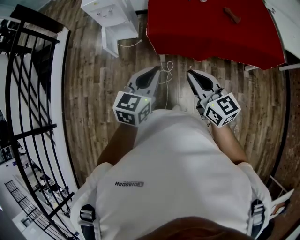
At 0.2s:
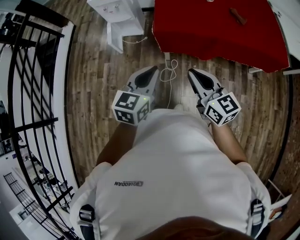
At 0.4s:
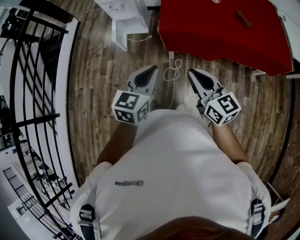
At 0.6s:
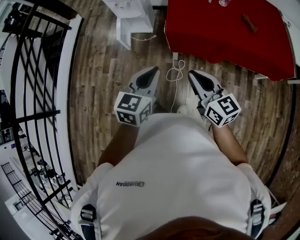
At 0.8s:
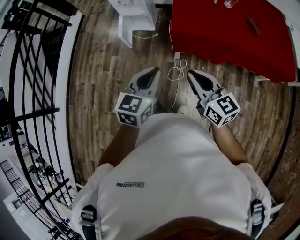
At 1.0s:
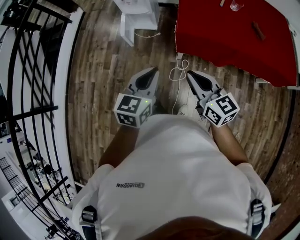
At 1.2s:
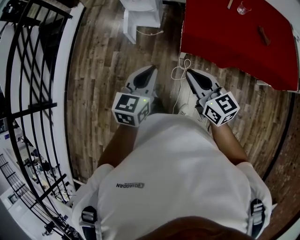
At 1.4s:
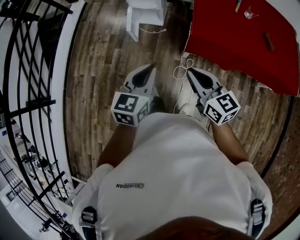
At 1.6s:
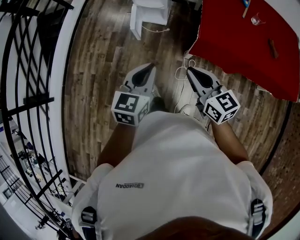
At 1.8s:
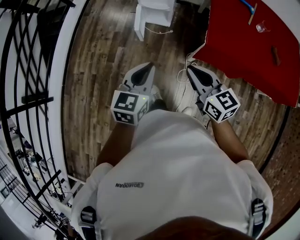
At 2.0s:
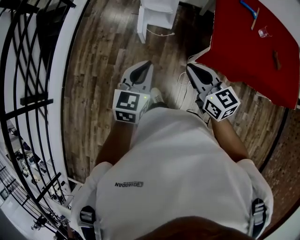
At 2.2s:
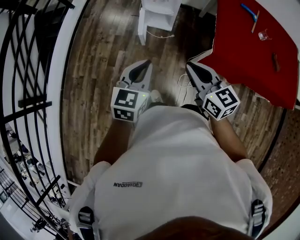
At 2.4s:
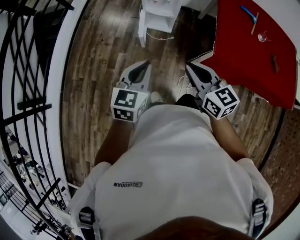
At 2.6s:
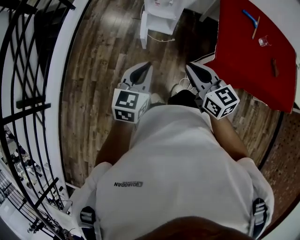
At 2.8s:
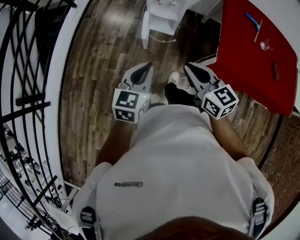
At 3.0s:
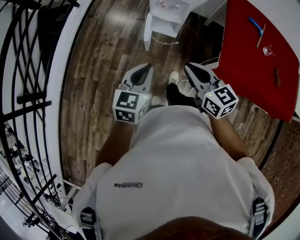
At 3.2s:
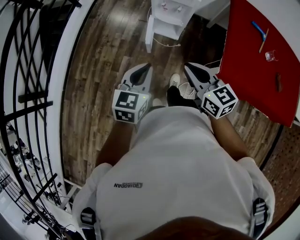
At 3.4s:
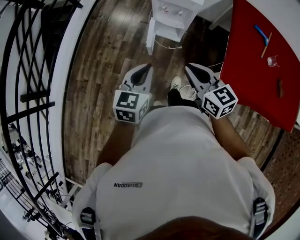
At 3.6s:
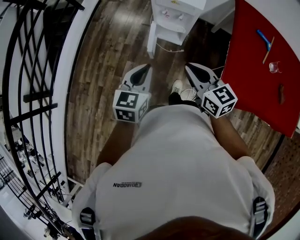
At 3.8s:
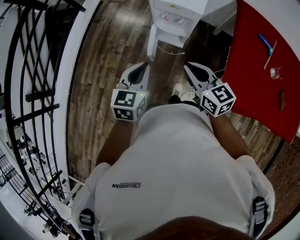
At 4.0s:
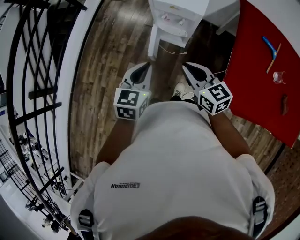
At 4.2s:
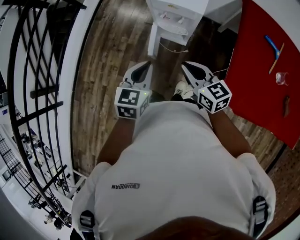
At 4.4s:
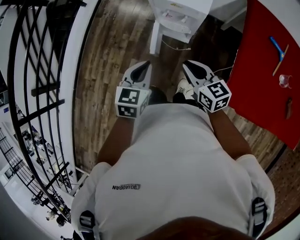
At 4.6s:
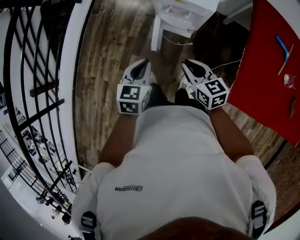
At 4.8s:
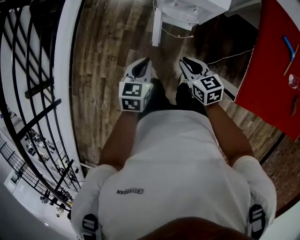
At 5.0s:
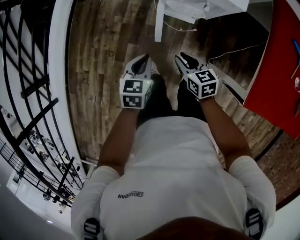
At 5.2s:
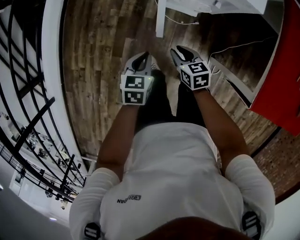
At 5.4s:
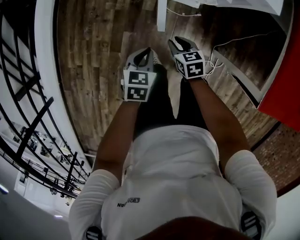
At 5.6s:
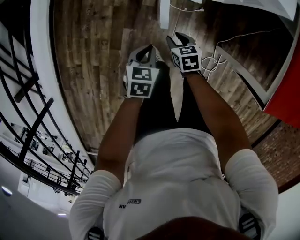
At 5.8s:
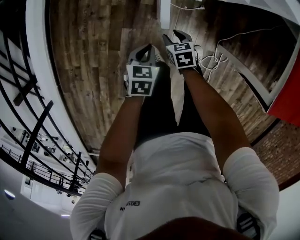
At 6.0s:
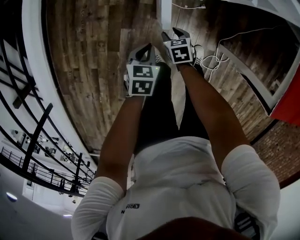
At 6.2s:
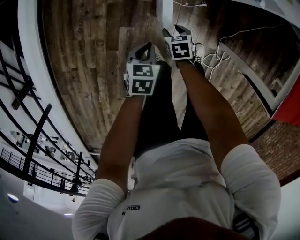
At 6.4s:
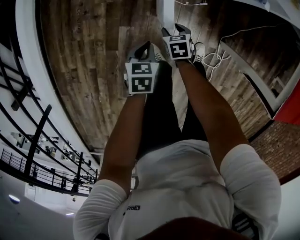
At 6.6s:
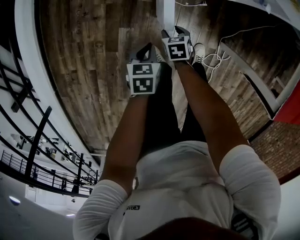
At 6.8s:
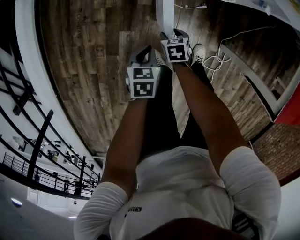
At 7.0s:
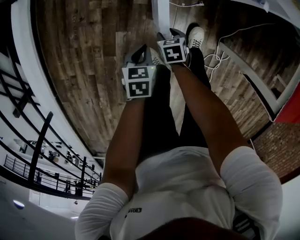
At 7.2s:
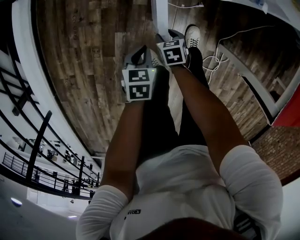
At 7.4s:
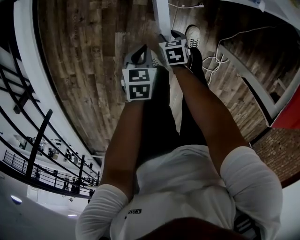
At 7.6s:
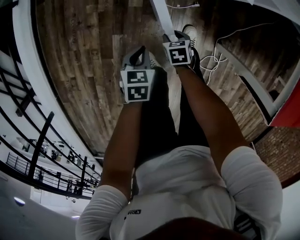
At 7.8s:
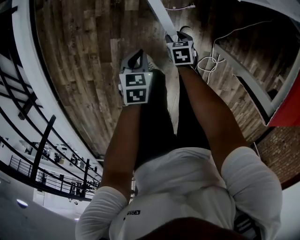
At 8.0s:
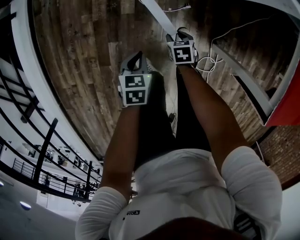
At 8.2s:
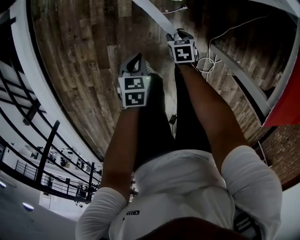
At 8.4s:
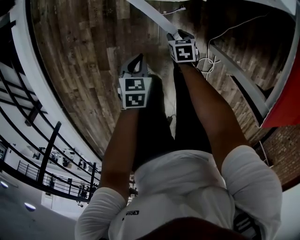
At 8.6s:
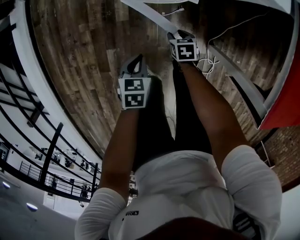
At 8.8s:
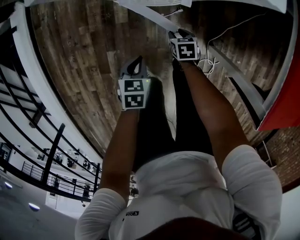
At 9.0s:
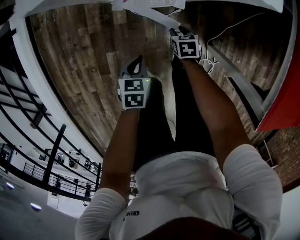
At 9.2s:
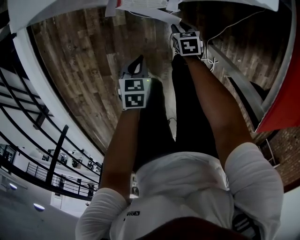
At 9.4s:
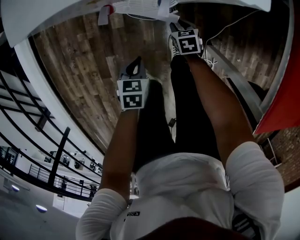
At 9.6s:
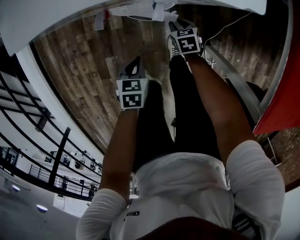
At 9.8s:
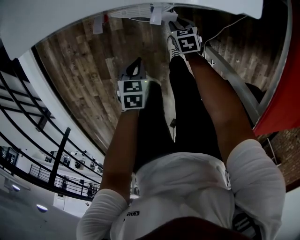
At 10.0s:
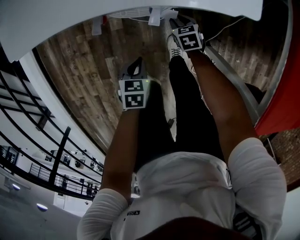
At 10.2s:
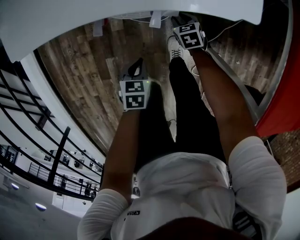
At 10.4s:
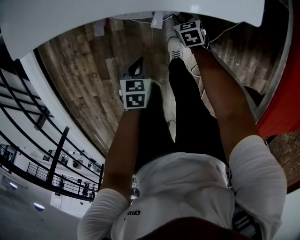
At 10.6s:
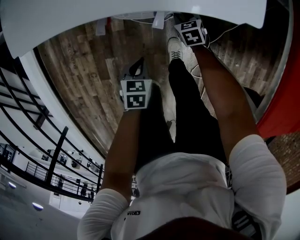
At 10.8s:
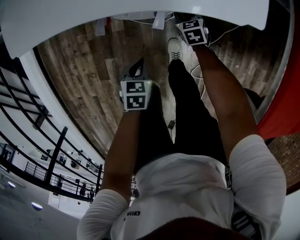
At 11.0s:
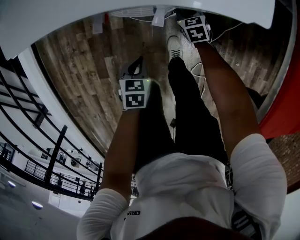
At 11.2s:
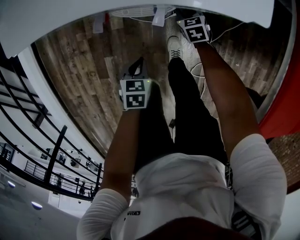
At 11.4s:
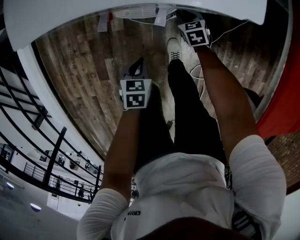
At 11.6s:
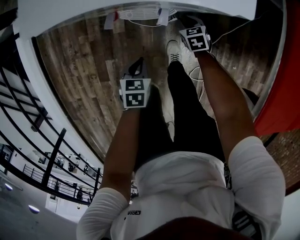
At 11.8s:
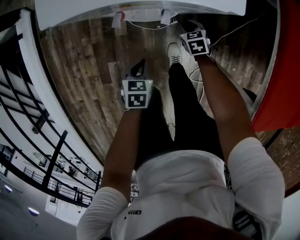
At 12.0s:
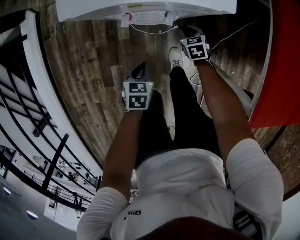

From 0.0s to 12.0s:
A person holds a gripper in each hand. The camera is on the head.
From 0.0s to 1.6s: The two grippers go some 25 cm to the left and forward.
From 1.6s to 3.0s: Both grippers move forward and to the left, about 20 cm.
From 3.0s to 4.4s: The left gripper goes approximately 20 cm forward; the right gripper is displaced forward and downward by about 20 cm.
From 4.4s to 6.0s: The two grippers go about 40 cm downward. The right gripper points its fingers some 40 degrees further downward, and opens its fingers, while the left gripper turns by approximately 30 degrees.
From 6.0s to 7.6s: The left gripper moves about 5 cm. Meanwhile the right gripper goes about 5 cm to the right.
From 7.6s to 9.0s: The right gripper is displaced to the right and forward by about 15 cm, while the left gripper travels to the right by about 10 cm.
From 9.0s to 10.4s: The right gripper shifts roughly 10 cm forward.
From 10.4s to 12.0s: Both grippers travel together upward, roughly 5 cm.

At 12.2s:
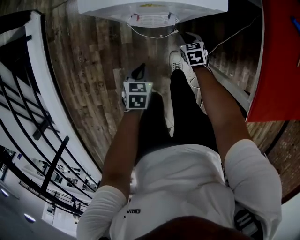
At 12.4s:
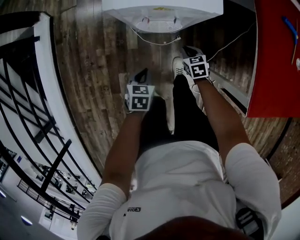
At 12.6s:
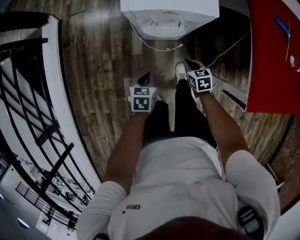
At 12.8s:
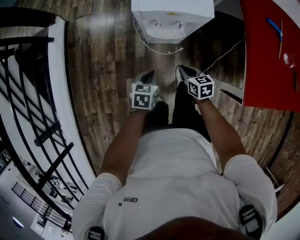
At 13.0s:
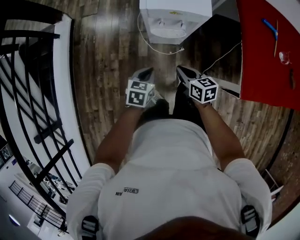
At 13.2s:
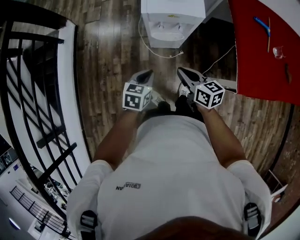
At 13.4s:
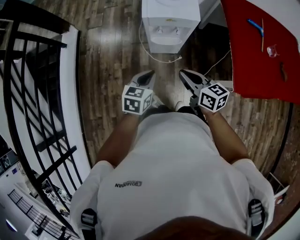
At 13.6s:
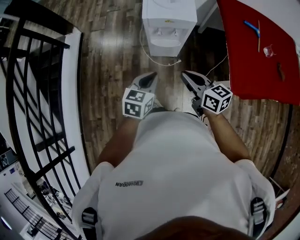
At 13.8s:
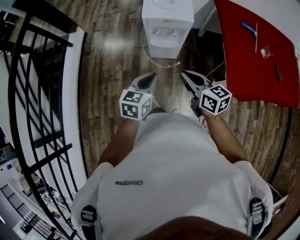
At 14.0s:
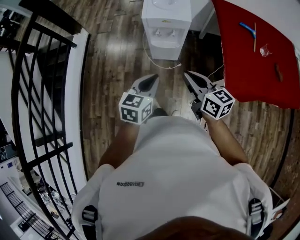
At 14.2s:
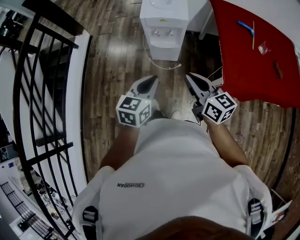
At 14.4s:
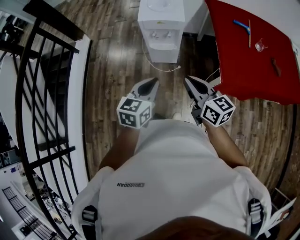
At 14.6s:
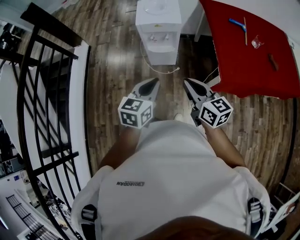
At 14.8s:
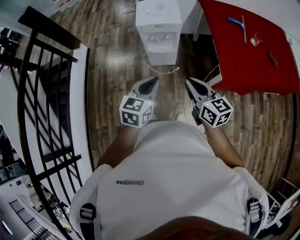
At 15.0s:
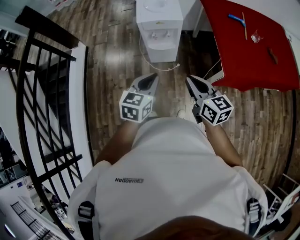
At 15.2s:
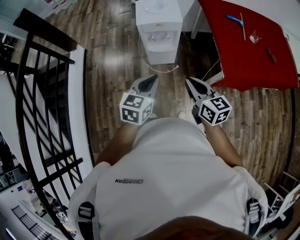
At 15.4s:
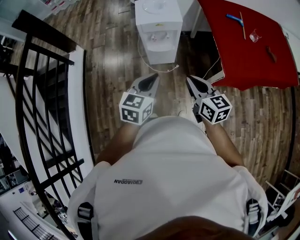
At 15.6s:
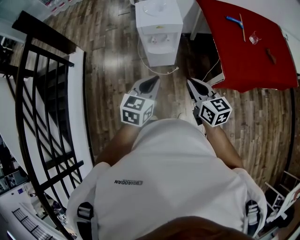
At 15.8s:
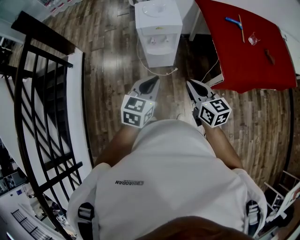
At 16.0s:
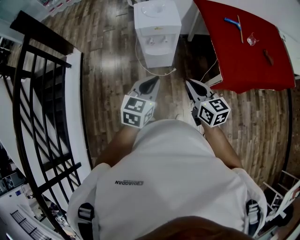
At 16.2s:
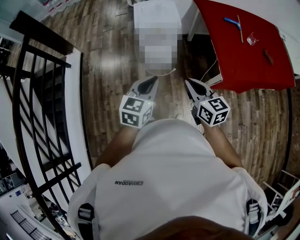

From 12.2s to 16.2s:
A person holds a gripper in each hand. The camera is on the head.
From 12.2s to 13.6s: The left gripper is displaced upward by roughly 35 cm, and changes its angle by about 30 degrees. The right gripper shifts approximately 50 cm upward and backward, and points its fingers about 40 degrees further upward.
From 13.6s to 14.8s: The two grippers go about 15 cm backward and upward.
From 14.8s to 16.2s: There are only small adjustments of the grippers.

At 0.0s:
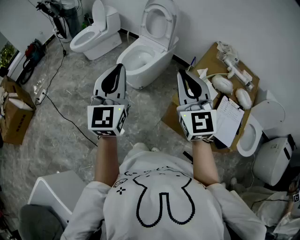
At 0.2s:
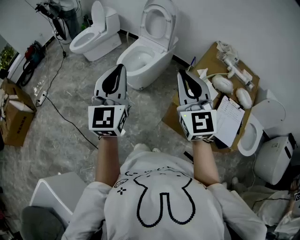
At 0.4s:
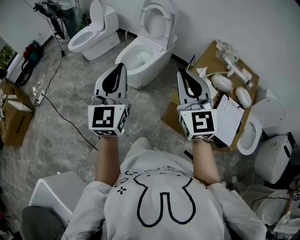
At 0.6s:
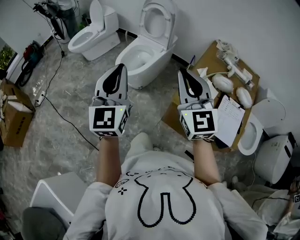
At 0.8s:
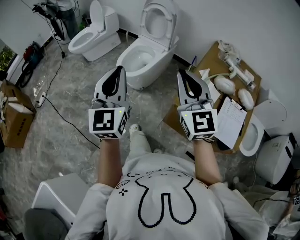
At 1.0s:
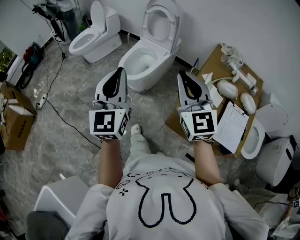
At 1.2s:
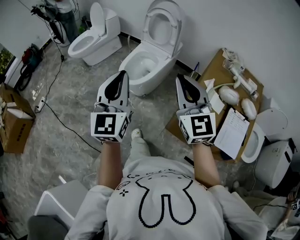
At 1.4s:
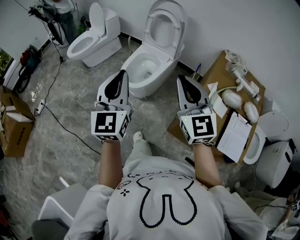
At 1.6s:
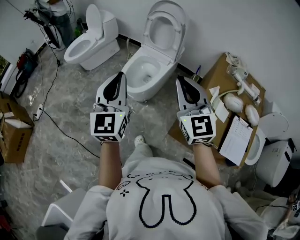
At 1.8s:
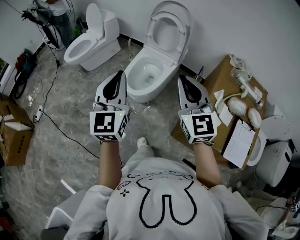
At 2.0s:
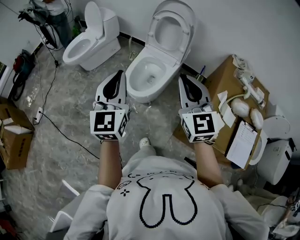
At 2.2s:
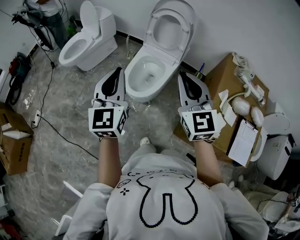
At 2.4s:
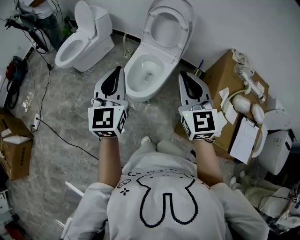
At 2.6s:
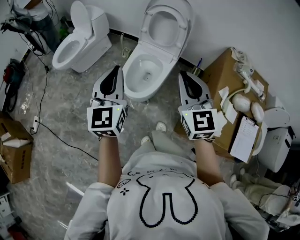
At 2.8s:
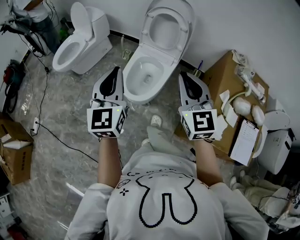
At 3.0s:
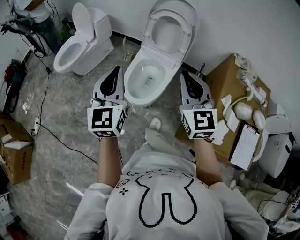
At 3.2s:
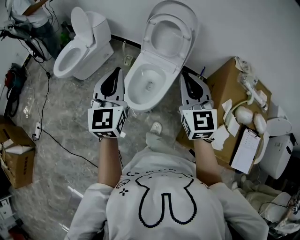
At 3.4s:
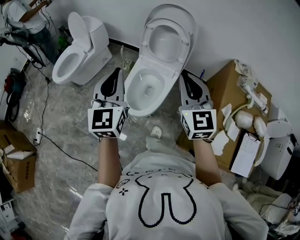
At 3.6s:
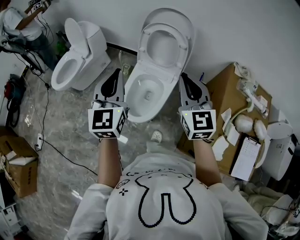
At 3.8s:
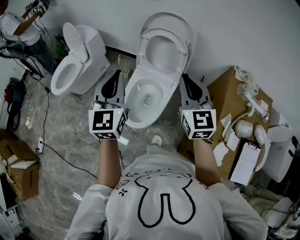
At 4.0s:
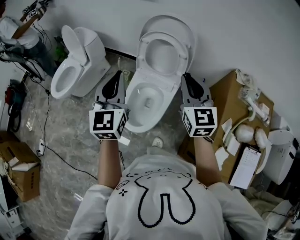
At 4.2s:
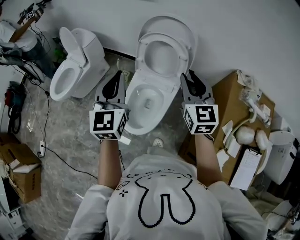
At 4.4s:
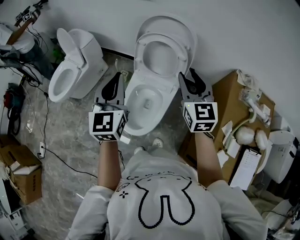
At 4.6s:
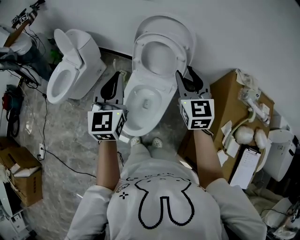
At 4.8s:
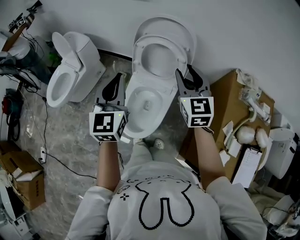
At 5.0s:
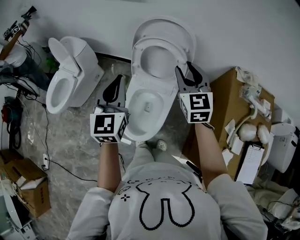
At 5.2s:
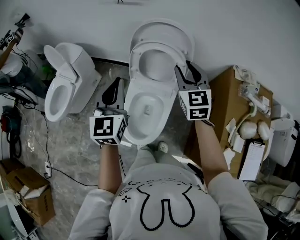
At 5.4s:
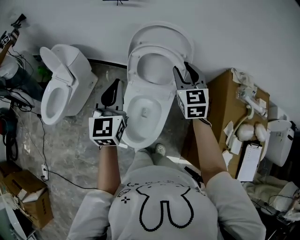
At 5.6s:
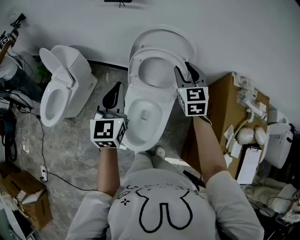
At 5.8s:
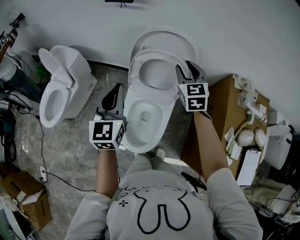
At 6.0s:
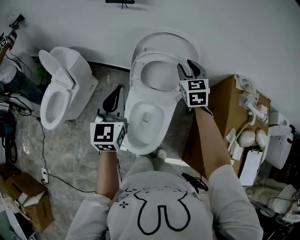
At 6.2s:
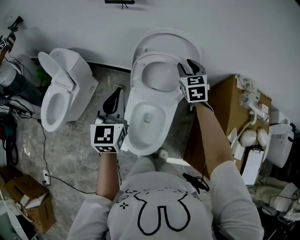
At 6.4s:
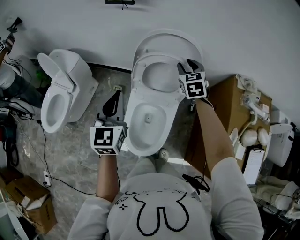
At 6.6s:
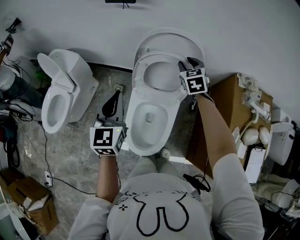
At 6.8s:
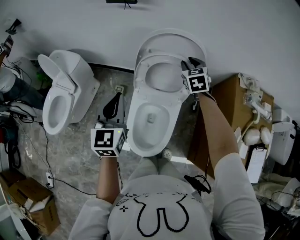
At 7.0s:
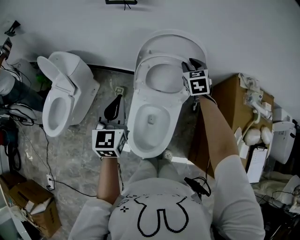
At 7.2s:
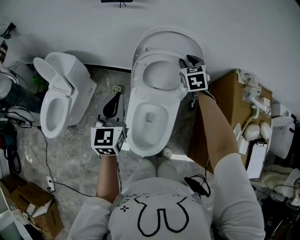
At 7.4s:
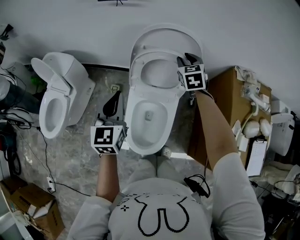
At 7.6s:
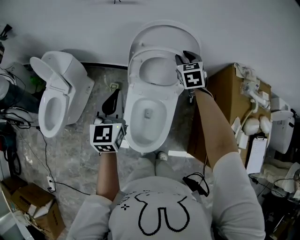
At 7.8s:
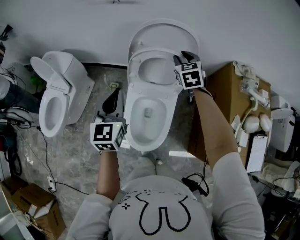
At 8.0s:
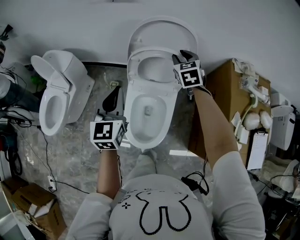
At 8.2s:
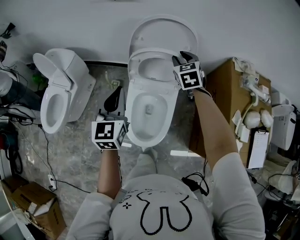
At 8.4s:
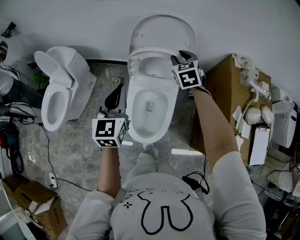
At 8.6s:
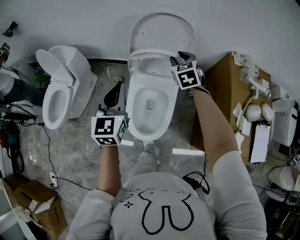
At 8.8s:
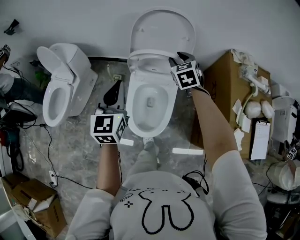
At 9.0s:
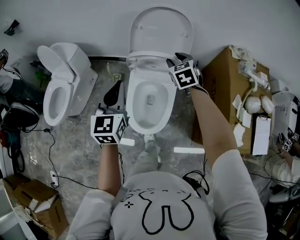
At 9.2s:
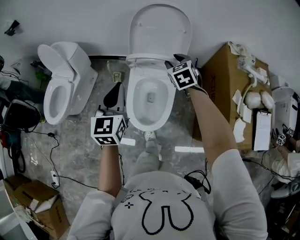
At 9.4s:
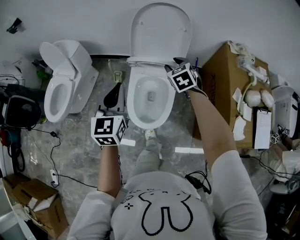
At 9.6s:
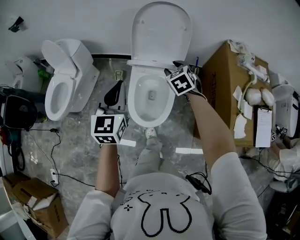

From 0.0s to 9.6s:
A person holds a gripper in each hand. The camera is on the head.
From 0.0s to 1.6s: The grippers both shift forward and to the left by some 20 cm.
From 1.6s to 3.2s: The two grippers go some 25 cm forward.
From 3.2s to 4.8s: The grippers both shift forward by approximately 25 cm. The right gripper opens its fingers.
From 4.8s to 6.4s: The left gripper goes approximately 15 cm forward, to the left and downward. Meanwhile the right gripper shifts approximately 20 cm forward and downward, and turns by some 20 degrees.
From 6.4s to 8.0s: The grippers stay close to where they were, moving slightly.
From 8.0s to 9.6s: The two grippers go approximately 20 cm backward.
